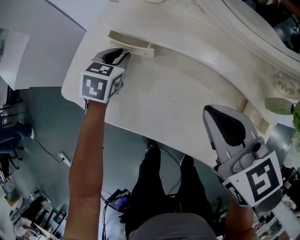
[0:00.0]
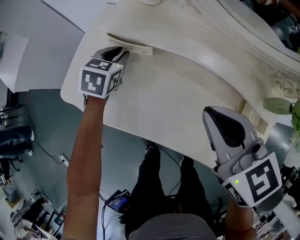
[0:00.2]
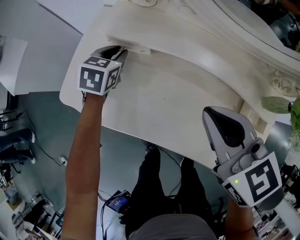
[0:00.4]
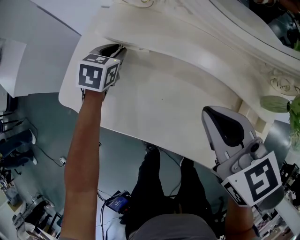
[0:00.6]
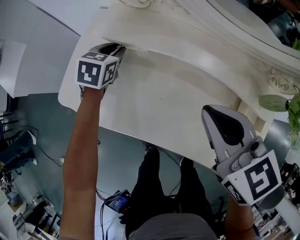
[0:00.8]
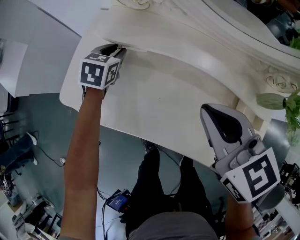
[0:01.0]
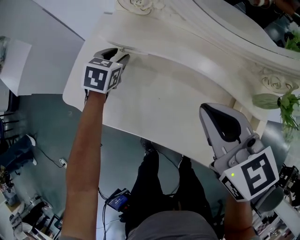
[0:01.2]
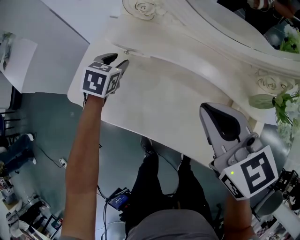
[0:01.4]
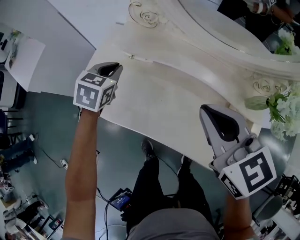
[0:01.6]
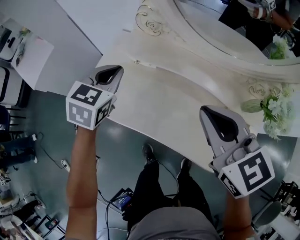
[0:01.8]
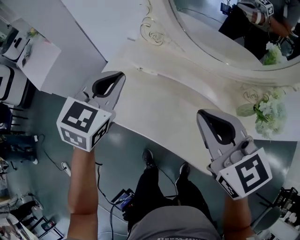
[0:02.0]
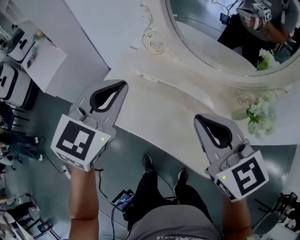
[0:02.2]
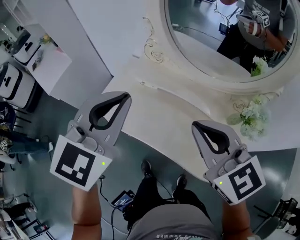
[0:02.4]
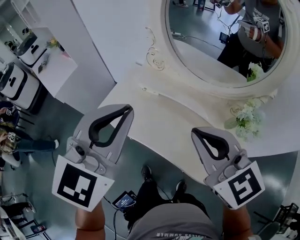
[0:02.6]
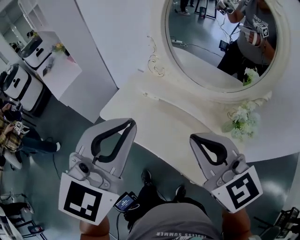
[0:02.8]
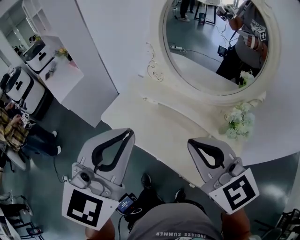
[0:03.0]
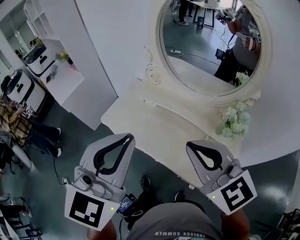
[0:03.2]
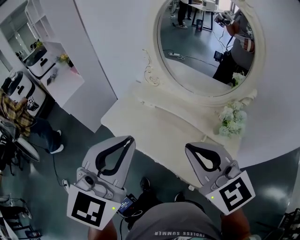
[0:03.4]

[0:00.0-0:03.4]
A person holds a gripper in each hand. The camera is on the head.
0:00.0 to 0:01.6: The two grippers go about 10 cm upward. The left gripper opens, then closes again.
0:01.6 to 0:03.4: The right gripper shifts approximately 25 cm upward and backward, and turns by approximately 20 degrees; the left gripper goes roughly 50 cm upward and backward, and angles its fingers upward, by some 40 degrees.

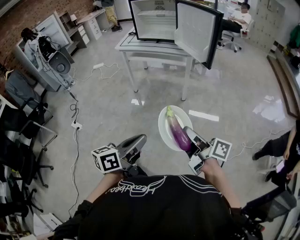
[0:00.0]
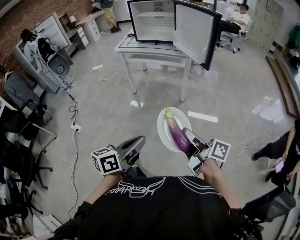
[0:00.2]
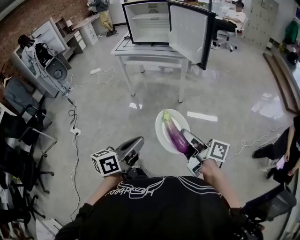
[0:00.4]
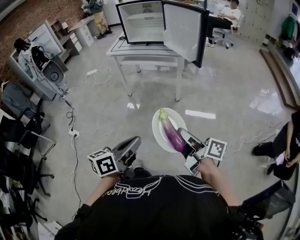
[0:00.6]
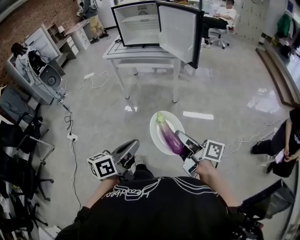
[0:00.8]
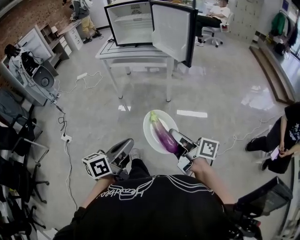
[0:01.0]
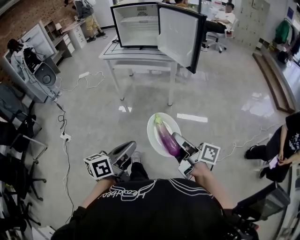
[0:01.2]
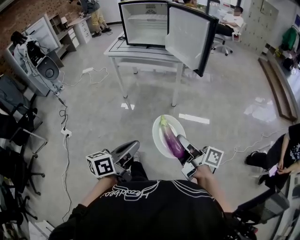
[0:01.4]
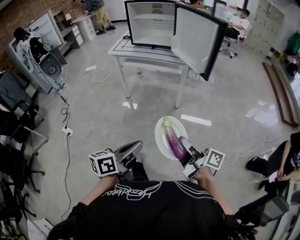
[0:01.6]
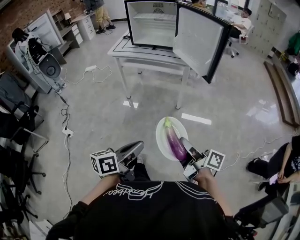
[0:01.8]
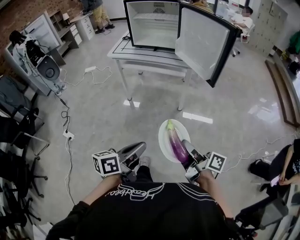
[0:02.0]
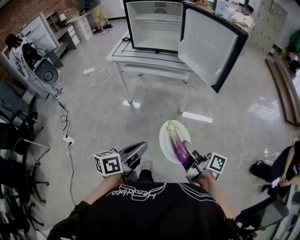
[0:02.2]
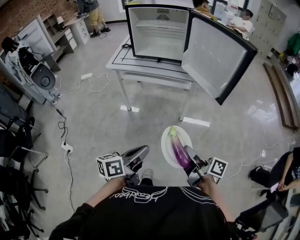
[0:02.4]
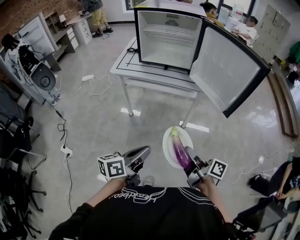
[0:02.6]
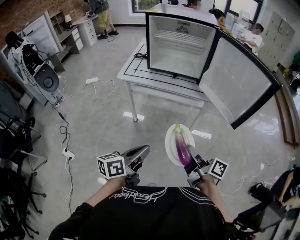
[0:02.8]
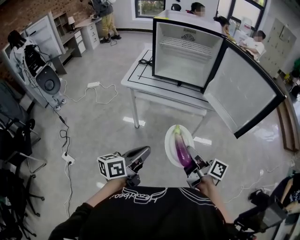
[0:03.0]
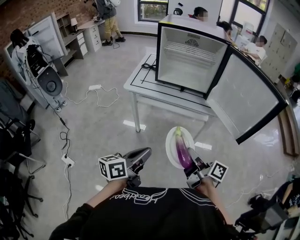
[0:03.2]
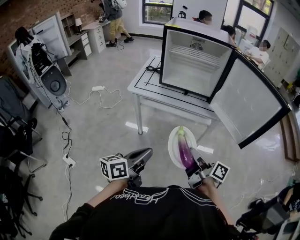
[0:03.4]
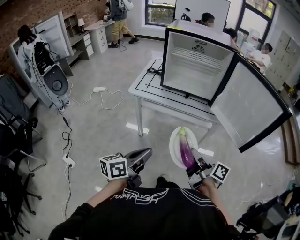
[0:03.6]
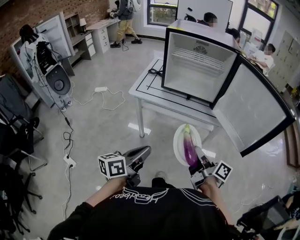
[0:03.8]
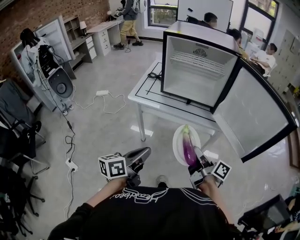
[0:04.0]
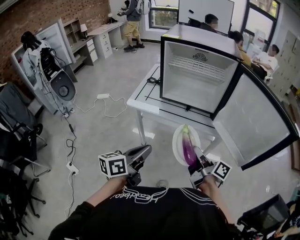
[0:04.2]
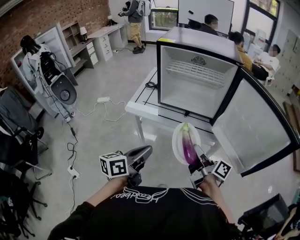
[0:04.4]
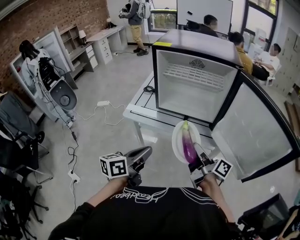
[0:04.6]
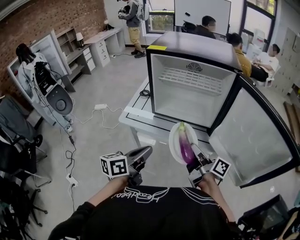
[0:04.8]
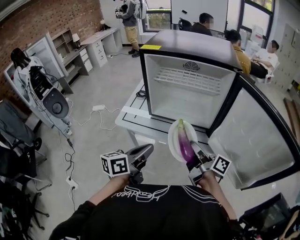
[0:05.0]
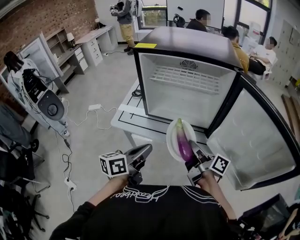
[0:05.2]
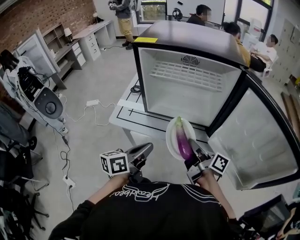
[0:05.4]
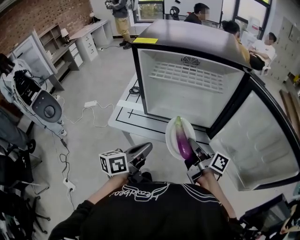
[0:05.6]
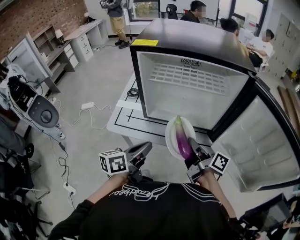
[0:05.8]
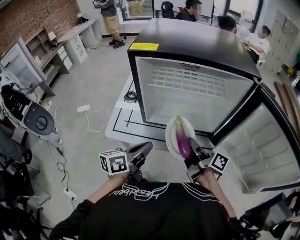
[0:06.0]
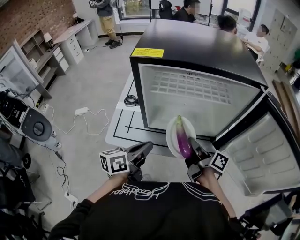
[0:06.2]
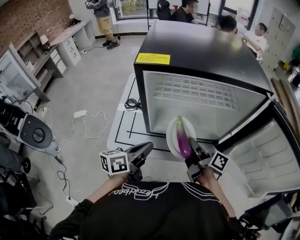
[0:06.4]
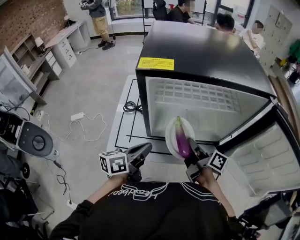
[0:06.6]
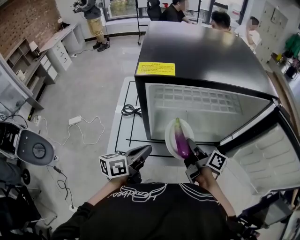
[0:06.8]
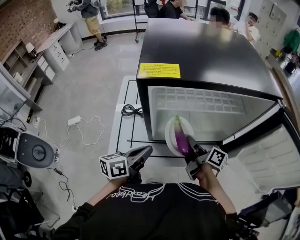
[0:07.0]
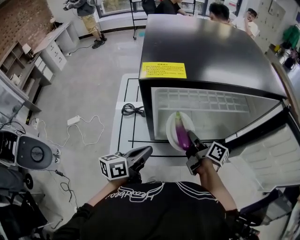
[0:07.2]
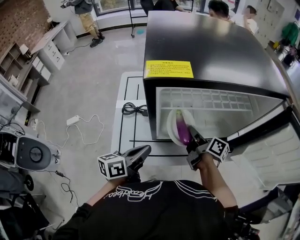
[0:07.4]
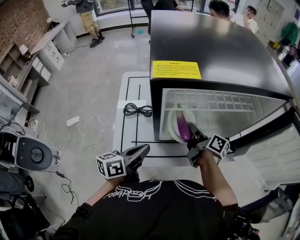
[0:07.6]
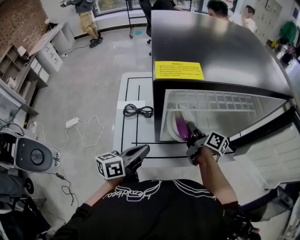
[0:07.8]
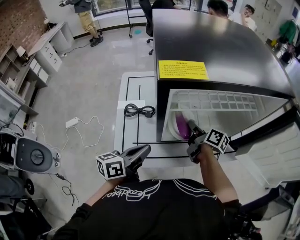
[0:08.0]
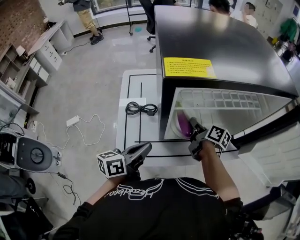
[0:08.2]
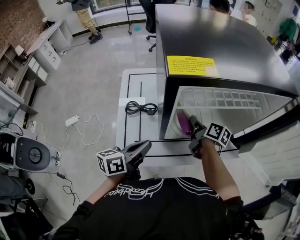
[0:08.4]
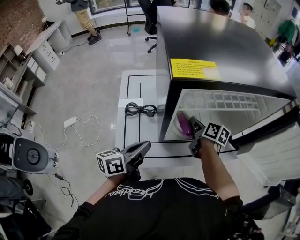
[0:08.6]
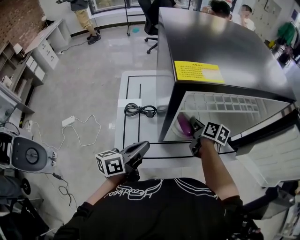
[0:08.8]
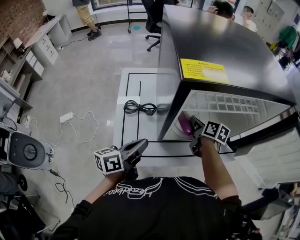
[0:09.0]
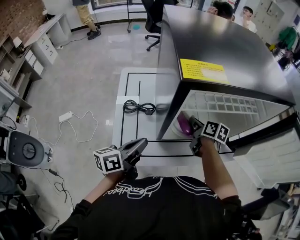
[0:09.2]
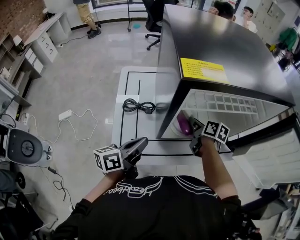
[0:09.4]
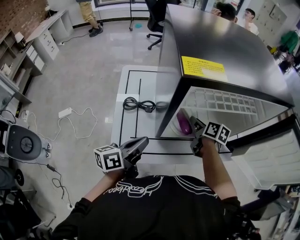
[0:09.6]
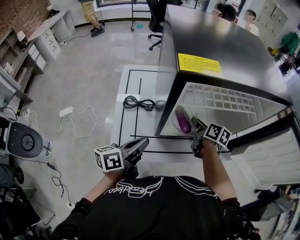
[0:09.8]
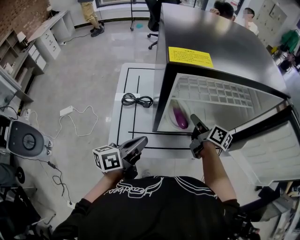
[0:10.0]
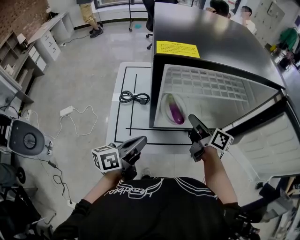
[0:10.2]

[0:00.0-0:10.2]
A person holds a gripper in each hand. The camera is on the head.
0:00.0 to 0:01.4: The grippers make only small movements.
0:01.4 to 0:03.0: The two grippers travel together, forward and to the left, about 40 cm.
0:03.0 to 0:04.4: The two grippers go approximately 20 cm forward.
0:04.4 to 0:05.8: The grippers both shift forward by roughly 20 cm.
0:05.8 to 0:07.2: The two grippers go about 20 cm forward and to the left.
0:07.2 to 0:08.8: The left gripper shifts about 5 cm to the left; the right gripper moves forward, approximately 5 cm, and changes its angle by some 30 degrees.
0:08.8 to 0:10.2: The right gripper shifts some 10 cm upward and backward, and changes its angle by some 30 degrees. The left gripper changes place by some 5 cm.

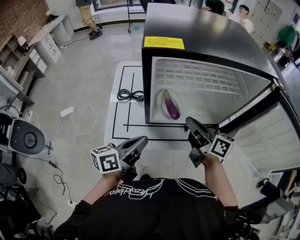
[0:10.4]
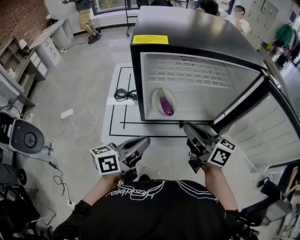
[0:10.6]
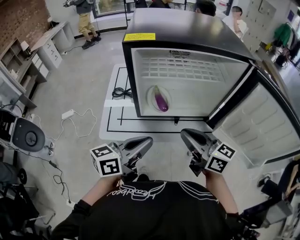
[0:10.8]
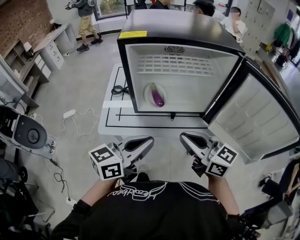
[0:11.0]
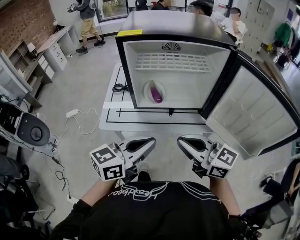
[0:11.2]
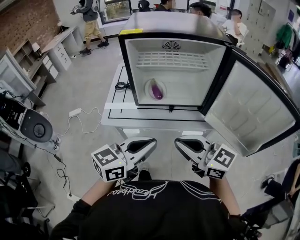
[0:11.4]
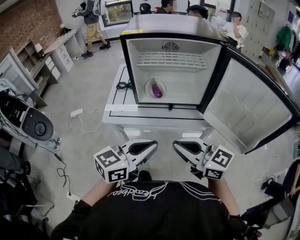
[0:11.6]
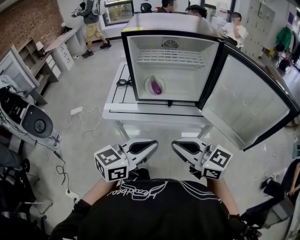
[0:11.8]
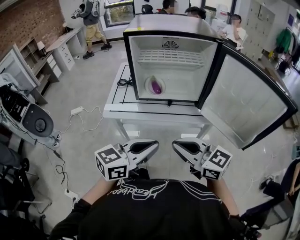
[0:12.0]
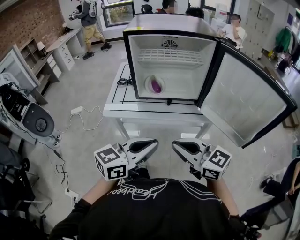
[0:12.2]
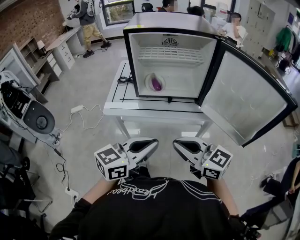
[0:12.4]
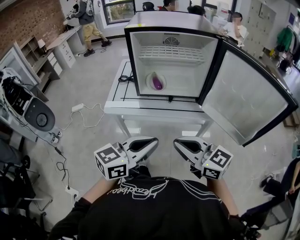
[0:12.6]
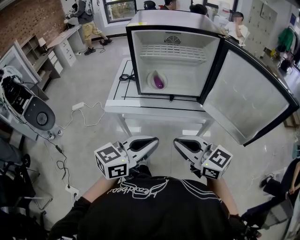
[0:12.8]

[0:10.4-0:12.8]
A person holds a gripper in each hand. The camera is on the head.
0:10.4 to 0:11.6: The left gripper is displaced backward and to the right by roughly 30 cm, and rotates roughly 30 degrees, while the right gripper is displaced backward by roughly 30 cm, and changes its angle by roughly 40 degrees.
0:11.6 to 0:12.8: The grippers stay close to where they were, moving slightly.

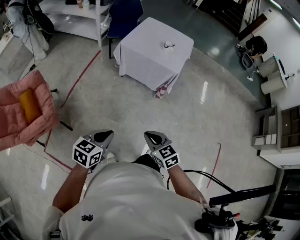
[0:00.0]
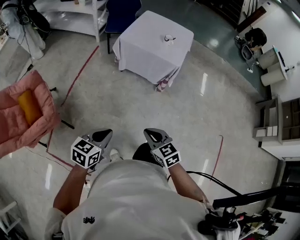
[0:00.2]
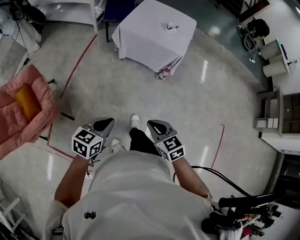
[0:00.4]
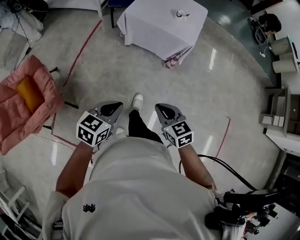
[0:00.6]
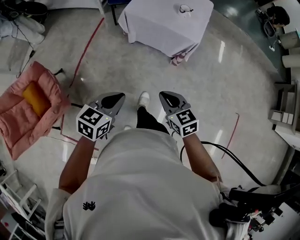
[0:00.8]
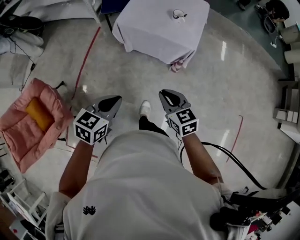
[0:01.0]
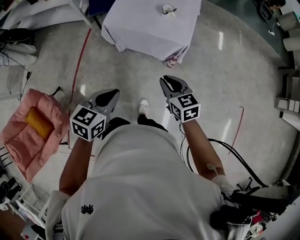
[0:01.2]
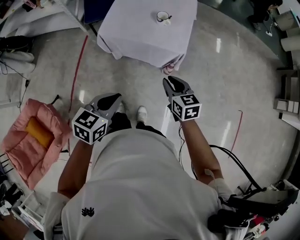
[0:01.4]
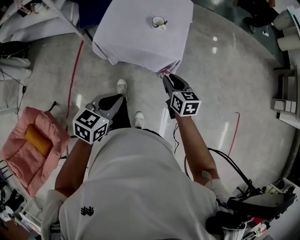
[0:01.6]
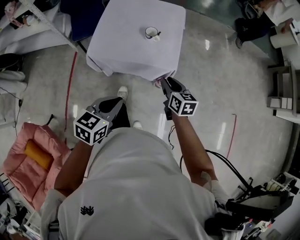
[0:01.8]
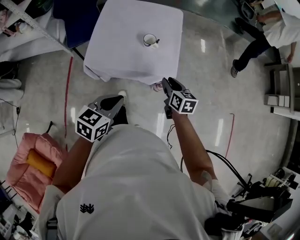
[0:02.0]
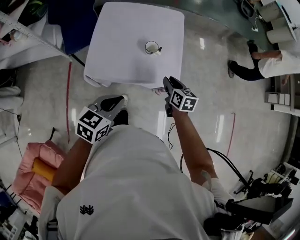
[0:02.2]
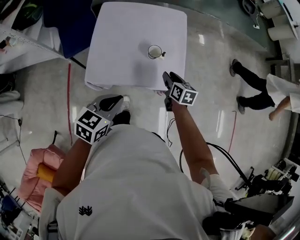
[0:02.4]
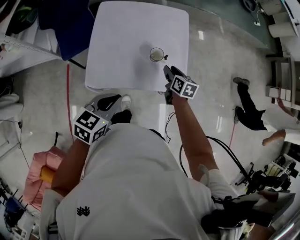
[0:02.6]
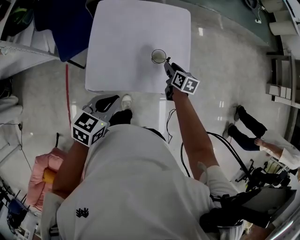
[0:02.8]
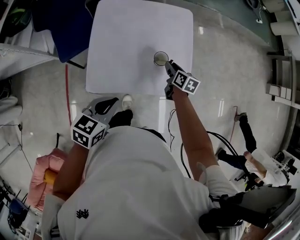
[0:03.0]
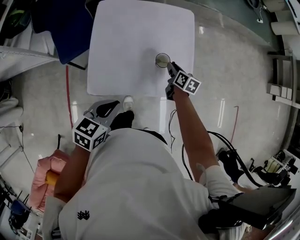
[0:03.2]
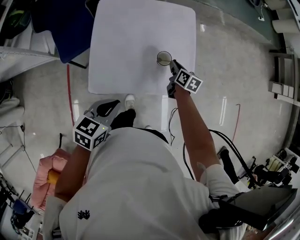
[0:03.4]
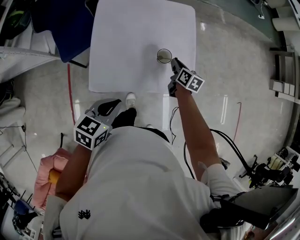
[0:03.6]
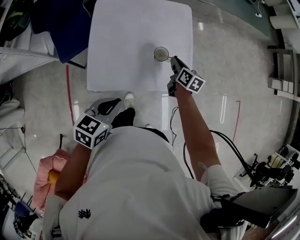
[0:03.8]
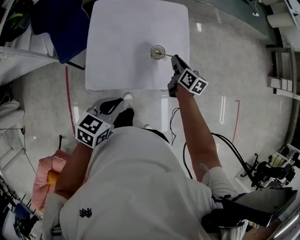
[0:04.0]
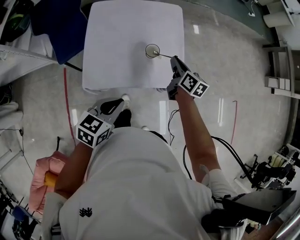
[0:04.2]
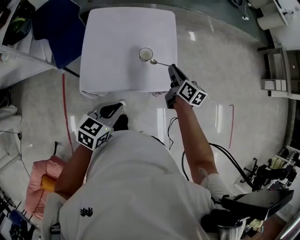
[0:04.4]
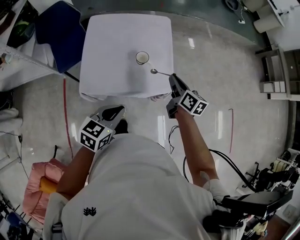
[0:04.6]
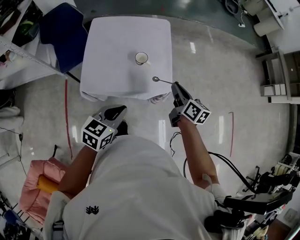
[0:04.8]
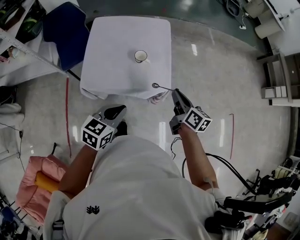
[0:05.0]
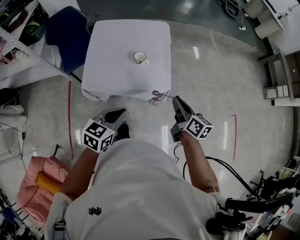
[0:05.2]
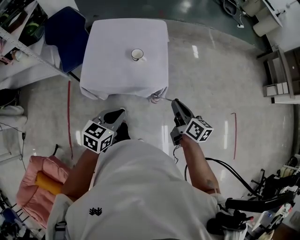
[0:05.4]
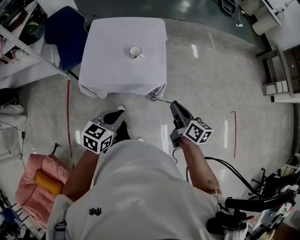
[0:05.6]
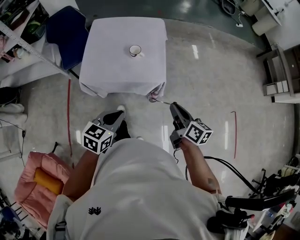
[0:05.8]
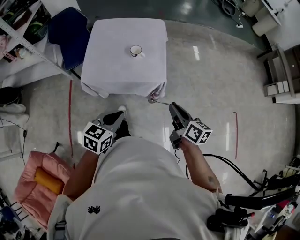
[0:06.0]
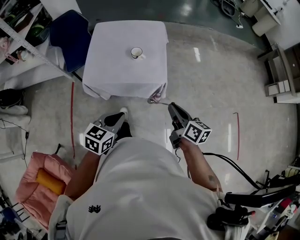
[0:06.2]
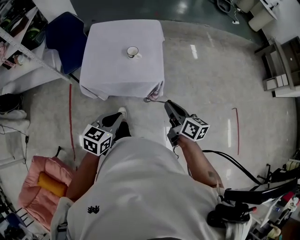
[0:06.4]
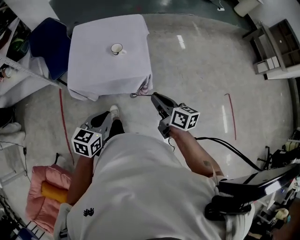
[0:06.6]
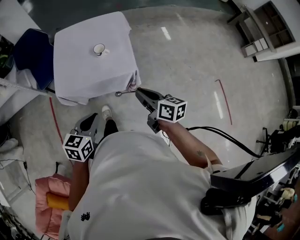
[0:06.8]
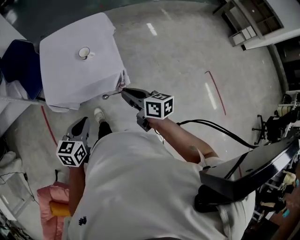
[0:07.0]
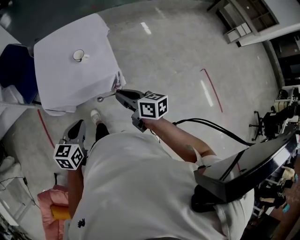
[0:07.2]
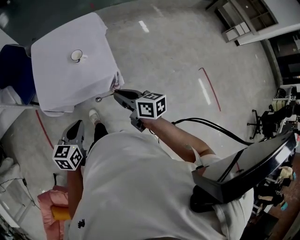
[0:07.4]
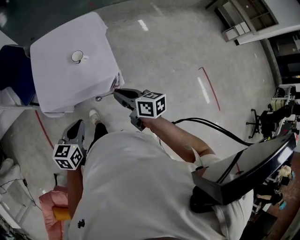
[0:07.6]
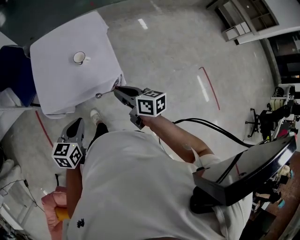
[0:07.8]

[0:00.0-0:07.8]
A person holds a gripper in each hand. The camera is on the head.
0:00.0 to 0:01.6: The pair of grippers is taken forward, roughly 50 cm. The right gripper rotates some 40 degrees, and opens.
0:01.6 to 0:03.2: The right gripper shifts approximately 35 cm forward, and turns by approximately 30 degrees, while the left gripper goes approximately 40 cm forward and to the left.
0:03.2 to 0:04.6: The right gripper heads upward, backward and to the right, covering approximately 25 cm, while the left gripper travels to the right and backward by roughly 15 cm.
0:04.6 to 0:06.2: The left gripper is displaced backward and to the right by approximately 15 cm. Meanwhile the right gripper shifts some 25 cm backward.
0:06.2 to 0:07.8: The right gripper goes some 10 cm forward and to the left. Meanwhile the left gripper travels forward by approximately 10 cm.
